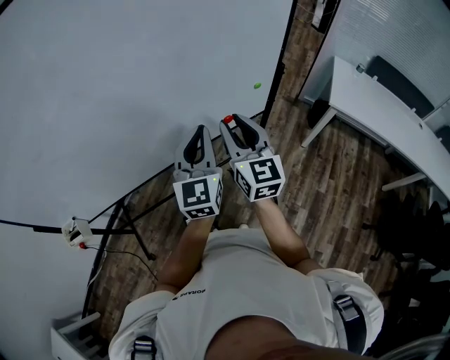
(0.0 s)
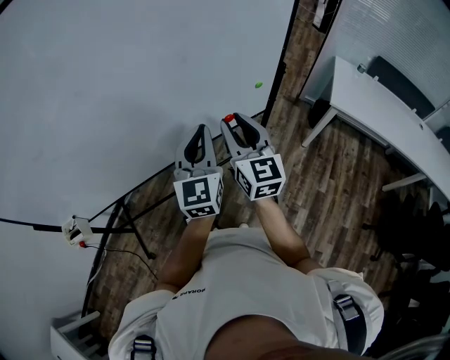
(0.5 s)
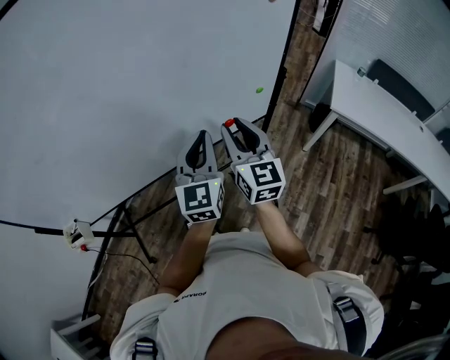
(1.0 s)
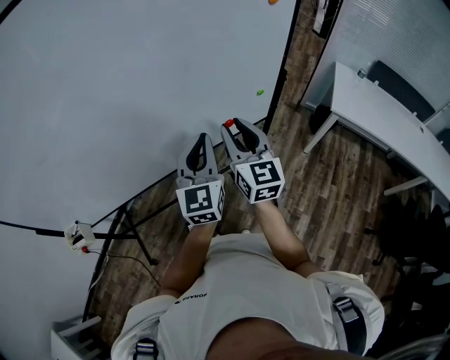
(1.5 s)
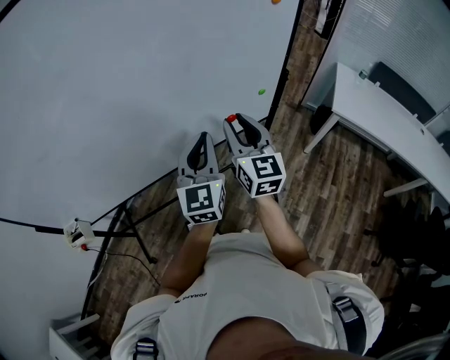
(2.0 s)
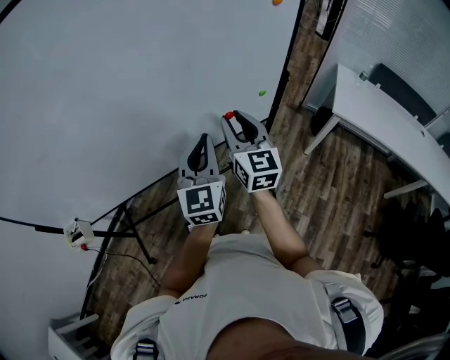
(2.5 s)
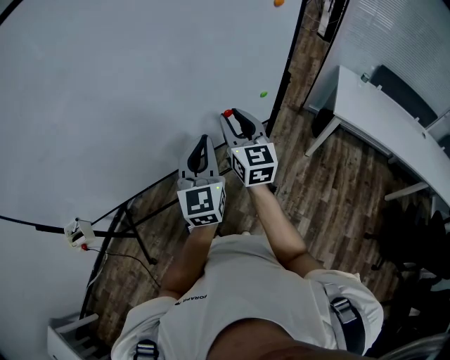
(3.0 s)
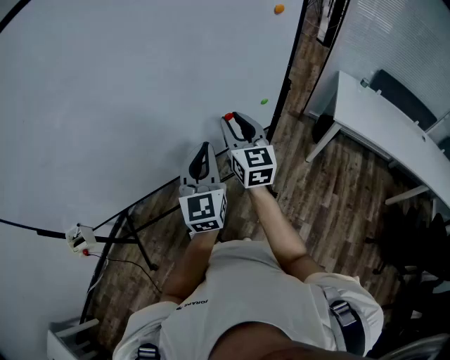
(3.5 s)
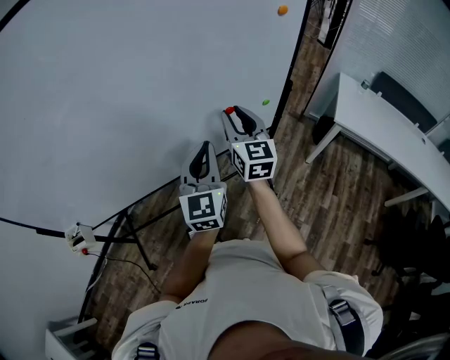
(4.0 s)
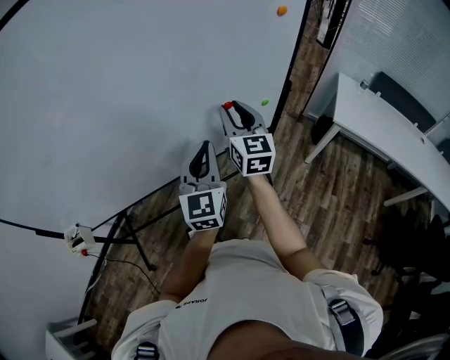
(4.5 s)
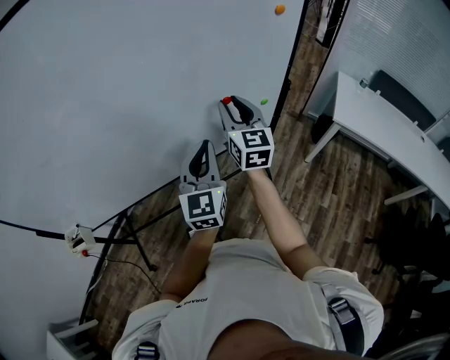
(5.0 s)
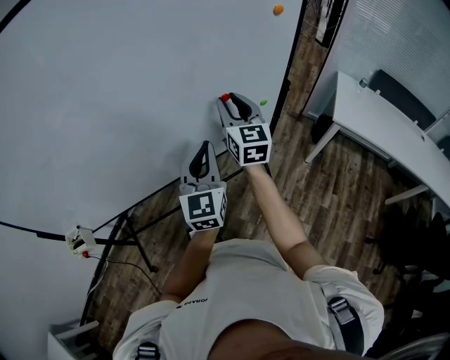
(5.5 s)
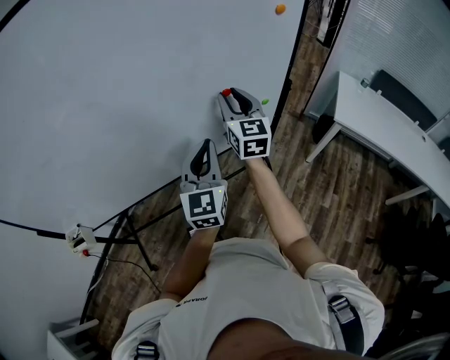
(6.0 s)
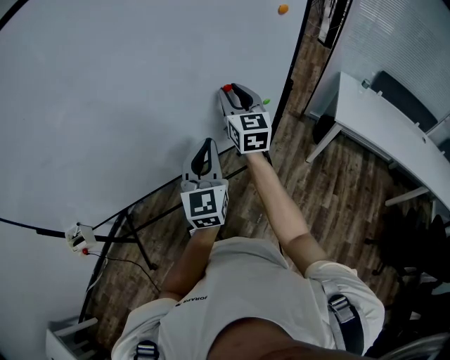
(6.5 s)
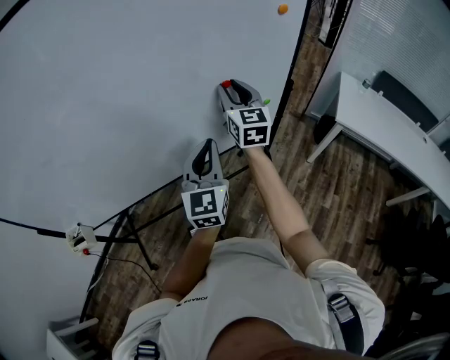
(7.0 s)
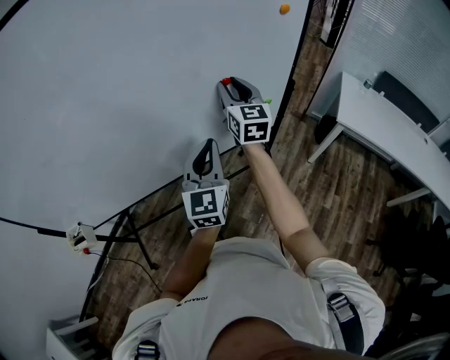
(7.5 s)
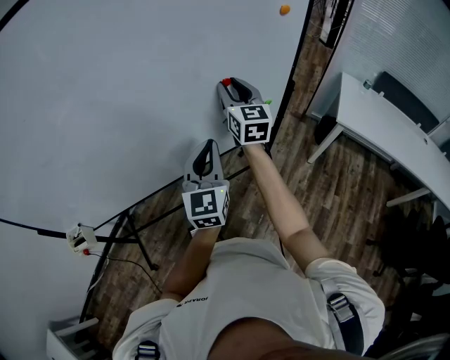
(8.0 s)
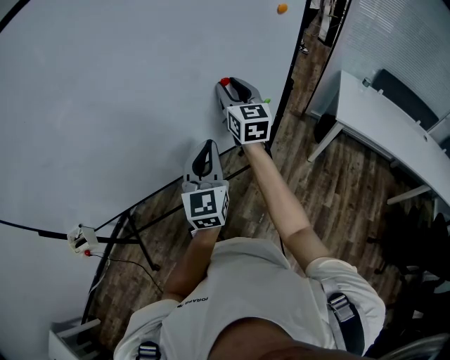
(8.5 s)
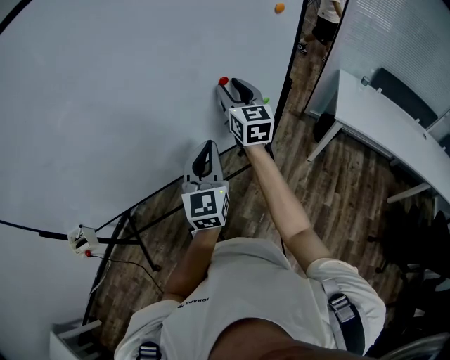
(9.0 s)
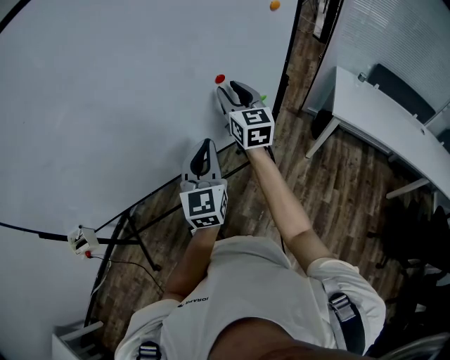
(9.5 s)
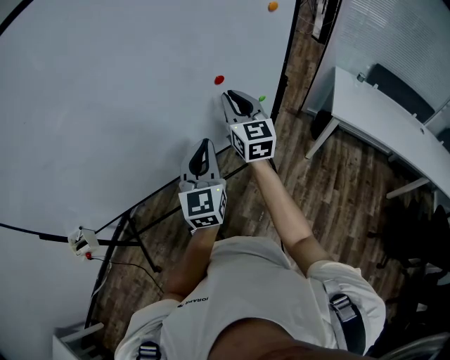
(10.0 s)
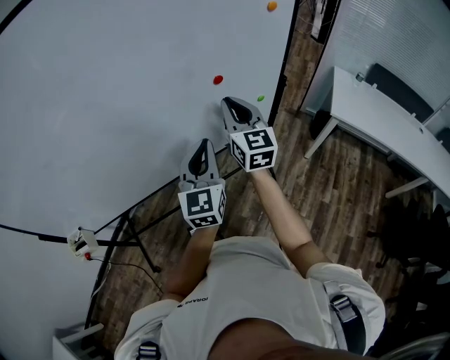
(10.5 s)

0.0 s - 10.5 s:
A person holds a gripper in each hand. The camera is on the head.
0.0 s - 2.0 s: The grippers move only a little.
2.0 s - 4.0 s: The right gripper is displaced forward by approximately 5 cm.
4.0 s - 6.5 s: The right gripper shifts approximately 5 cm forward.
6.5 s - 8.5 s: The grippers make only small movements.
8.5 s - 10.5 s: The right gripper goes roughly 10 cm backward, and closes up.

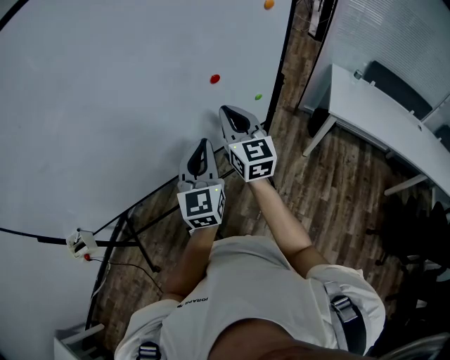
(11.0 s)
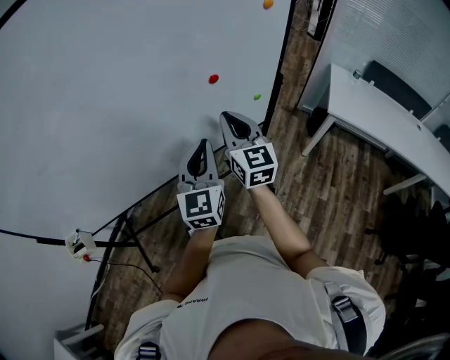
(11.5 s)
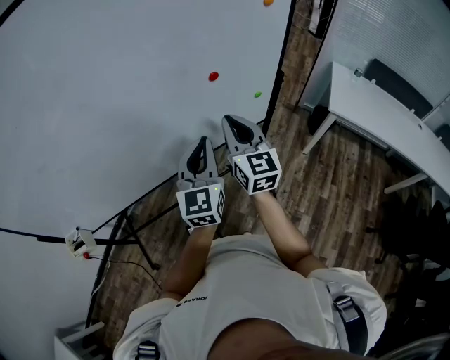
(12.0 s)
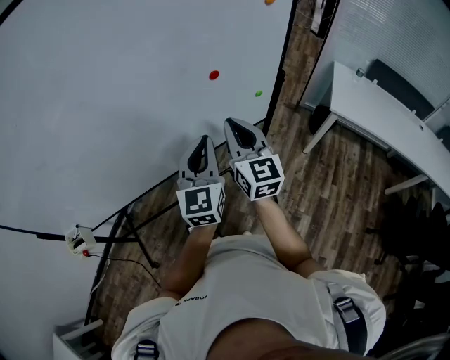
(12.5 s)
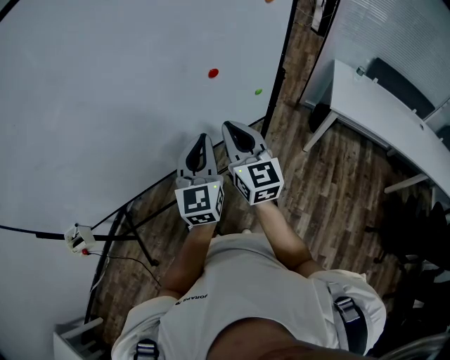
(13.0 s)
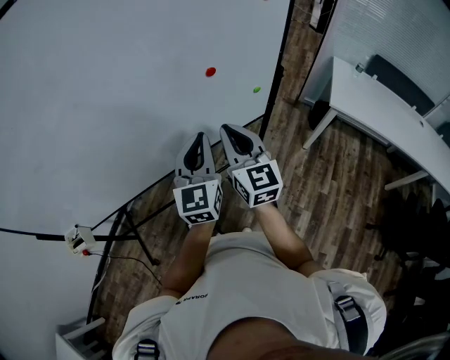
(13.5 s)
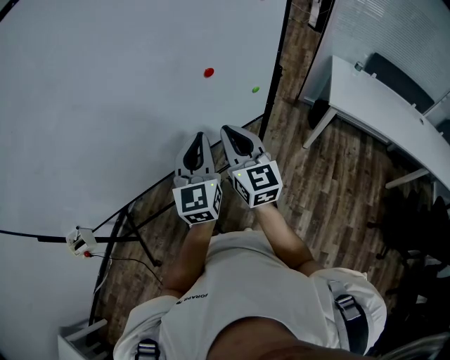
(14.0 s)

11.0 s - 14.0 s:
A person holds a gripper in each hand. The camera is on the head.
11.0 s - 12.5 s: The grippers make only small movements.
12.5 s - 14.0 s: The grippers move only a little.

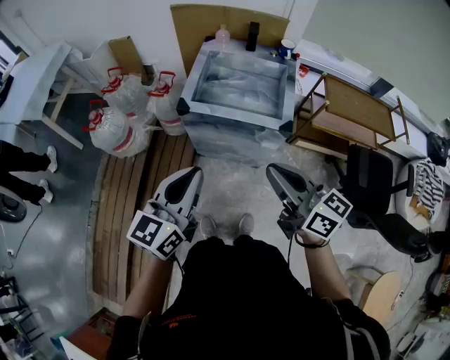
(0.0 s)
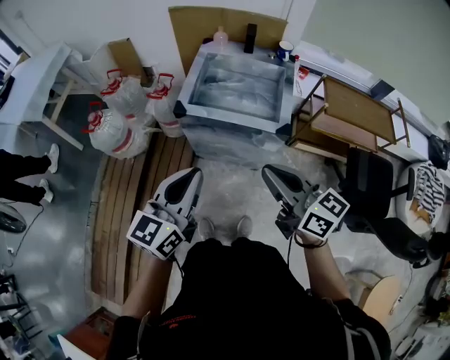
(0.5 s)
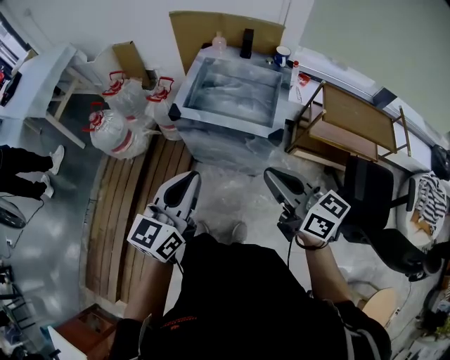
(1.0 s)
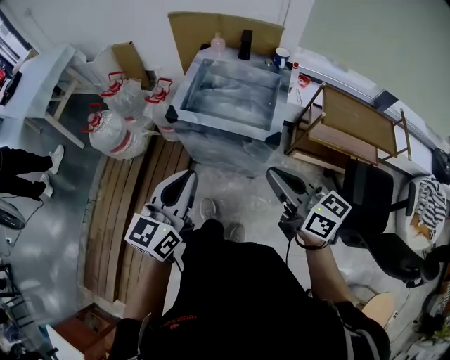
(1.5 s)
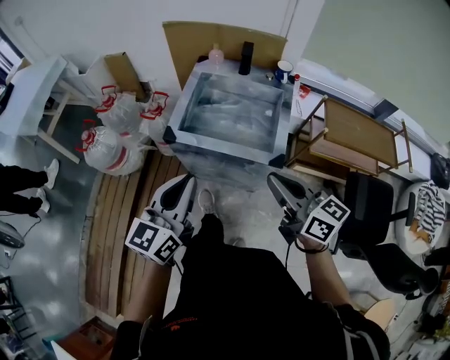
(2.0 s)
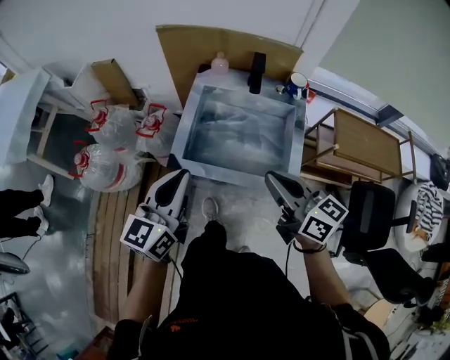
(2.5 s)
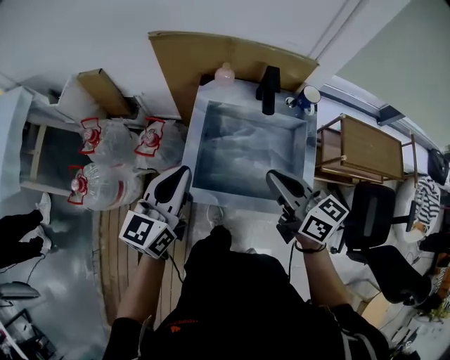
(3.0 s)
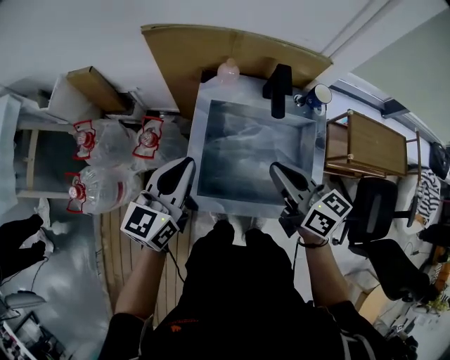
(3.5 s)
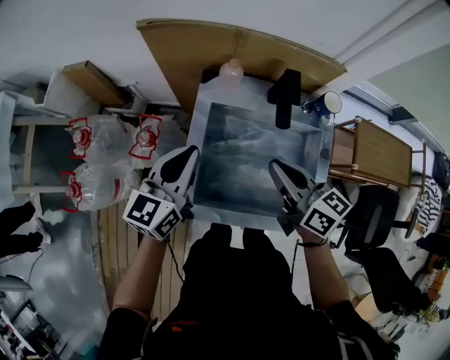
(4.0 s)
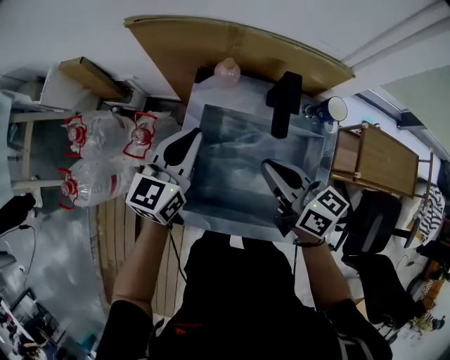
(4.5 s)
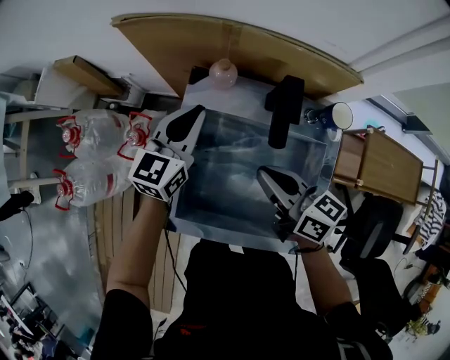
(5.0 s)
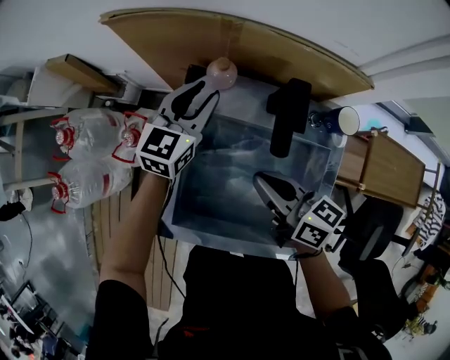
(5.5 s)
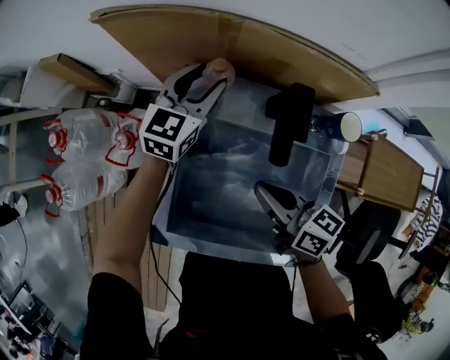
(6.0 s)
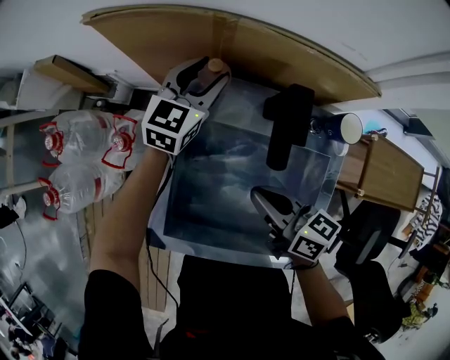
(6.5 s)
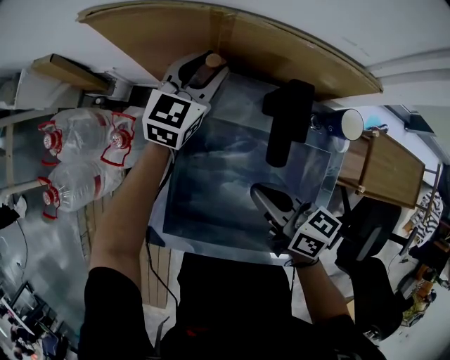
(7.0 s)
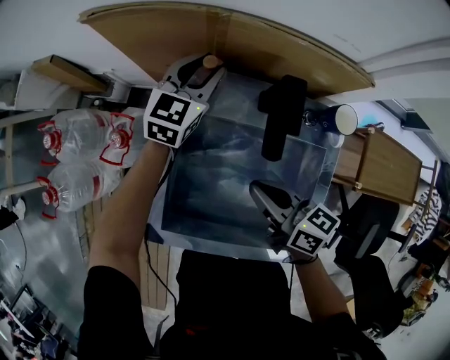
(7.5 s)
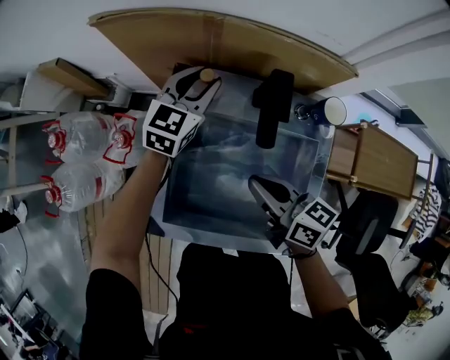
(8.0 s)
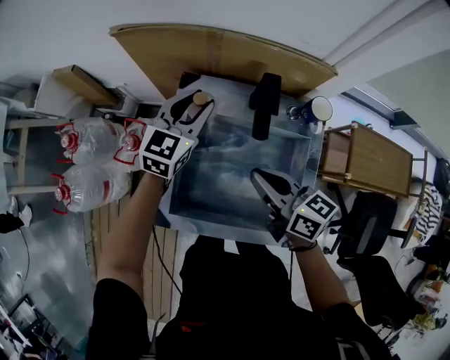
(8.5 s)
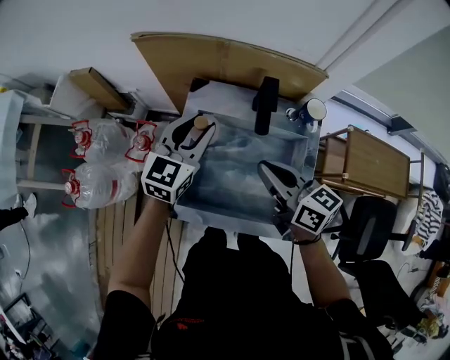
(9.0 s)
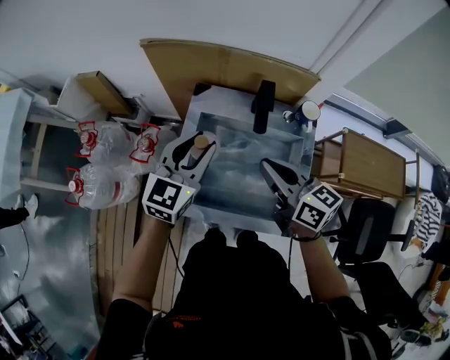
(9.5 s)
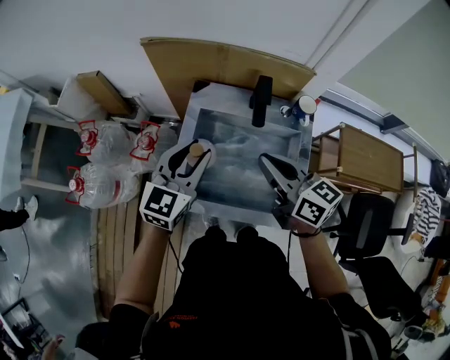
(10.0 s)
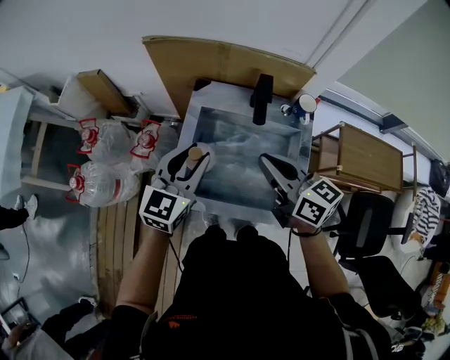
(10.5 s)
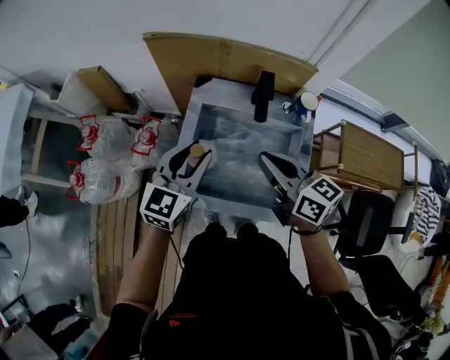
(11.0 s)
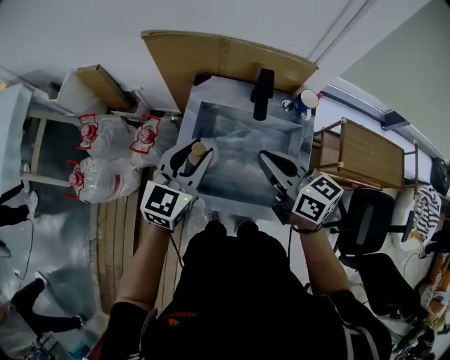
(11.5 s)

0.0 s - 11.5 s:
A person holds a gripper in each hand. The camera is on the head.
0.0 s - 2.0 s: The grippers both shift forward and to the right by approximately 15 cm.
2.0 s - 4.0 s: Both grippers move forward, approximately 40 cm.
4.0 s - 6.0 s: The right gripper travels downward by approximately 10 cm. The left gripper is displaced forward, to the right and downward by approximately 30 cm, and opens.
6.0 s - 7.5 s: The grippers make only small movements.
7.5 s - 9.5 s: The left gripper is displaced backward and upward by roughly 30 cm. Meanwhile the right gripper shifts some 15 cm upward.
9.5 s - 11.5 s: The left gripper ends up approximately 5 cm from where it was.

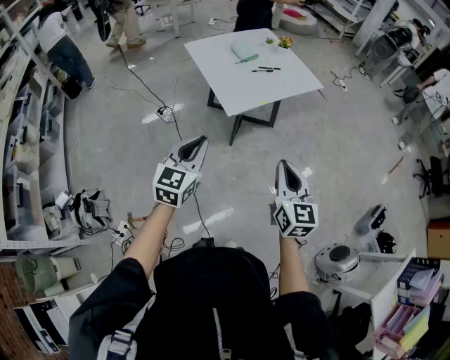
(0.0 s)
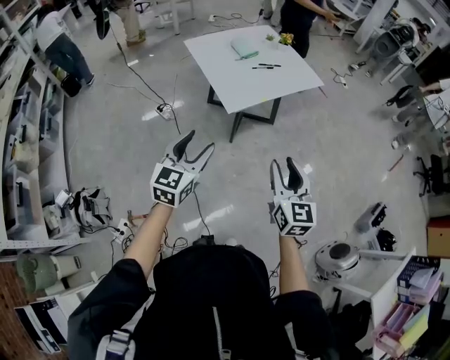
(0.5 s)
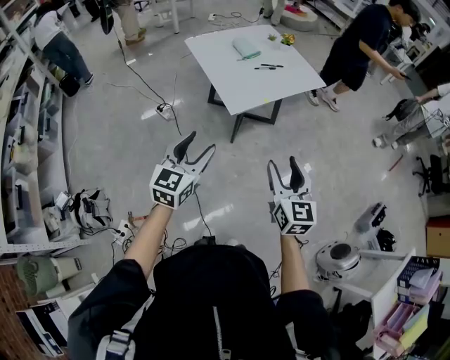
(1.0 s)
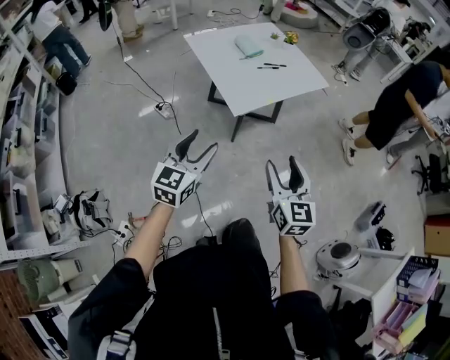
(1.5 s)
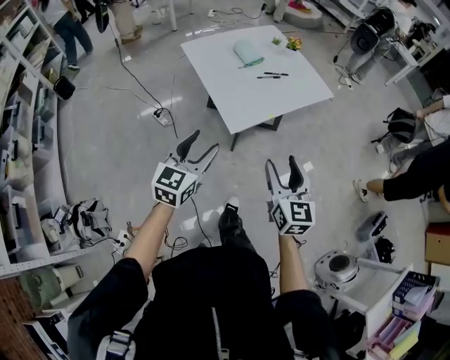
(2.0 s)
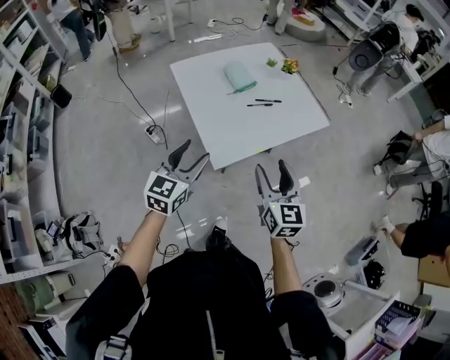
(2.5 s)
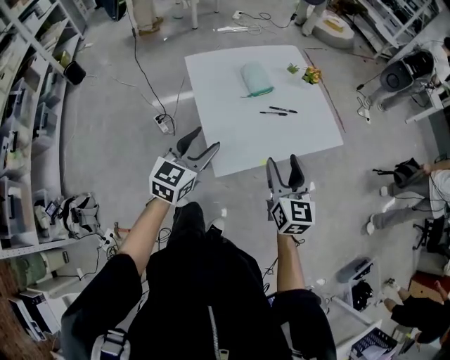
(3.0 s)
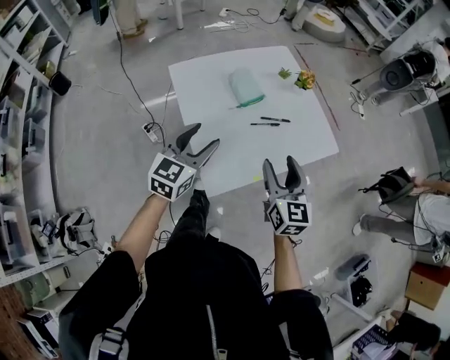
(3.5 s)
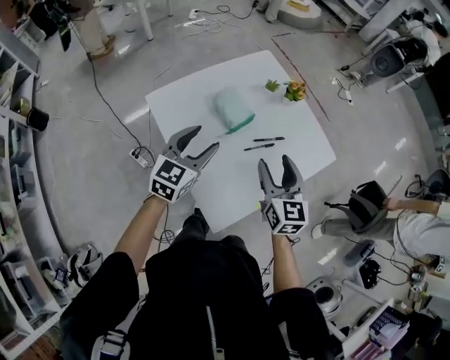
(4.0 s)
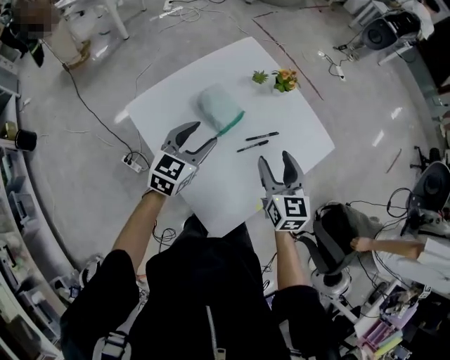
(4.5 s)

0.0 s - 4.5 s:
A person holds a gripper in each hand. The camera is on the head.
0.0 s - 2.0 s: The two grippers go approximately 15 cm forward. The left gripper opens up. The right gripper opens its fingers.
2.0 s - 4.5 s: Both grippers are carried forward, some 50 cm.
